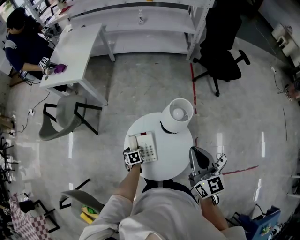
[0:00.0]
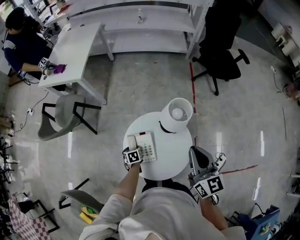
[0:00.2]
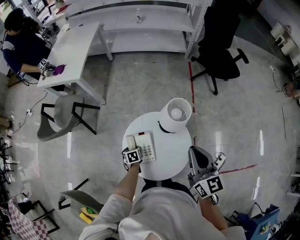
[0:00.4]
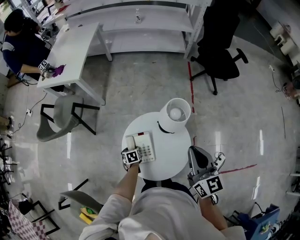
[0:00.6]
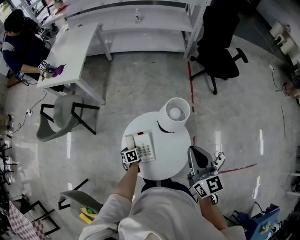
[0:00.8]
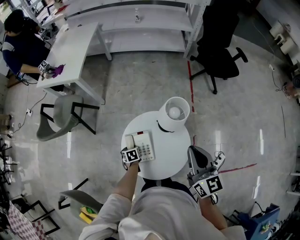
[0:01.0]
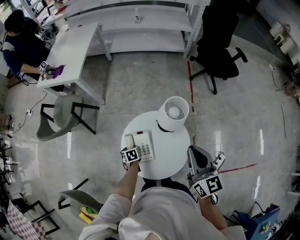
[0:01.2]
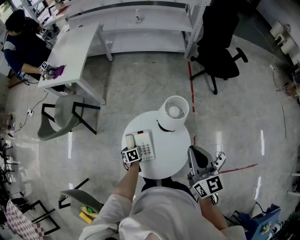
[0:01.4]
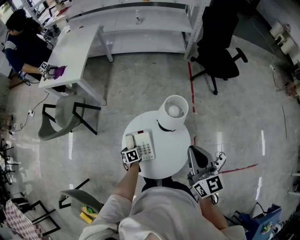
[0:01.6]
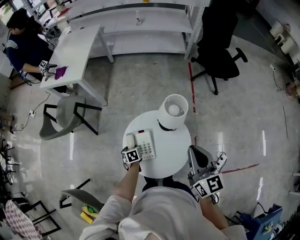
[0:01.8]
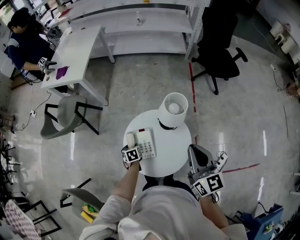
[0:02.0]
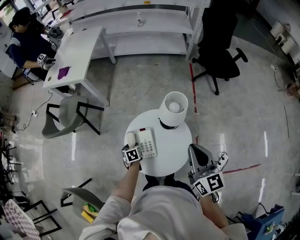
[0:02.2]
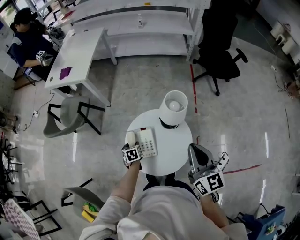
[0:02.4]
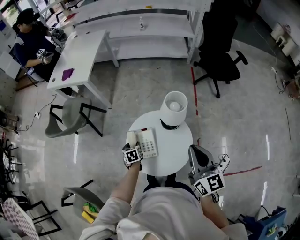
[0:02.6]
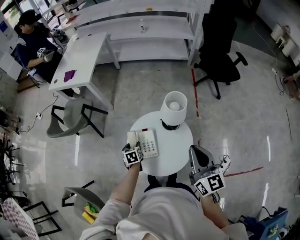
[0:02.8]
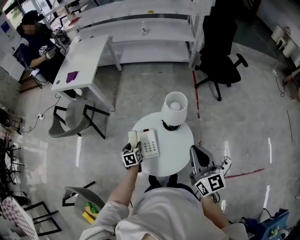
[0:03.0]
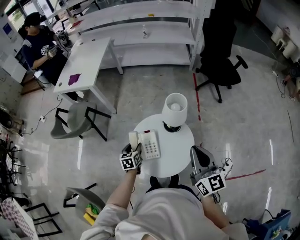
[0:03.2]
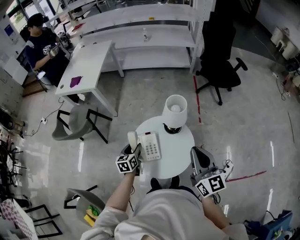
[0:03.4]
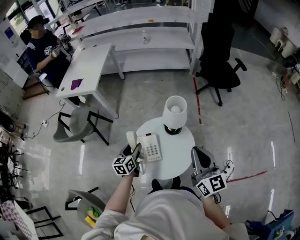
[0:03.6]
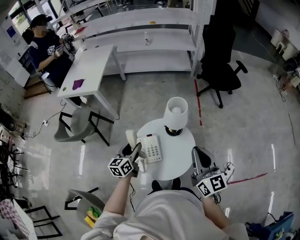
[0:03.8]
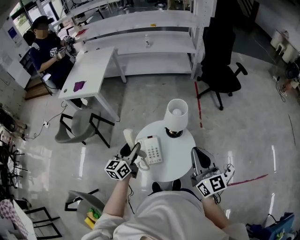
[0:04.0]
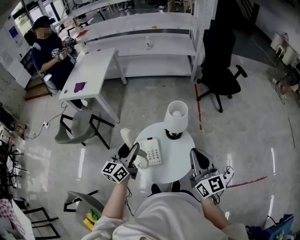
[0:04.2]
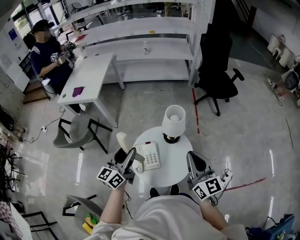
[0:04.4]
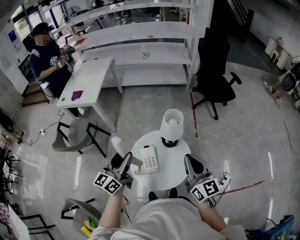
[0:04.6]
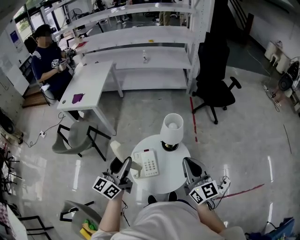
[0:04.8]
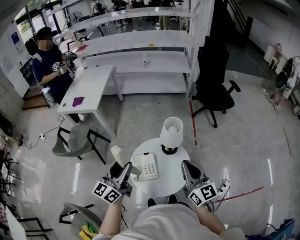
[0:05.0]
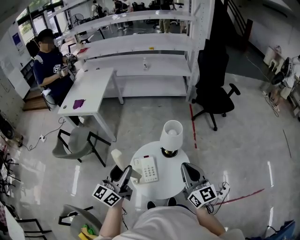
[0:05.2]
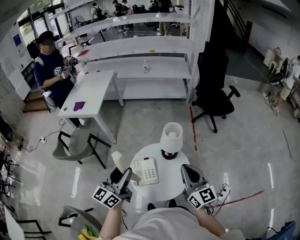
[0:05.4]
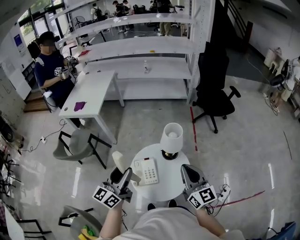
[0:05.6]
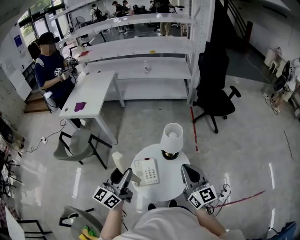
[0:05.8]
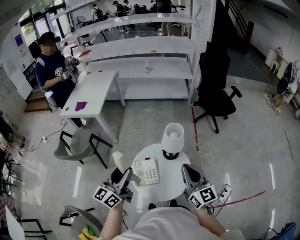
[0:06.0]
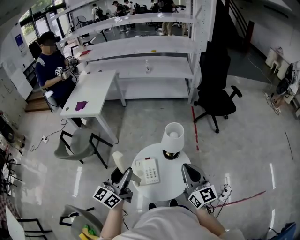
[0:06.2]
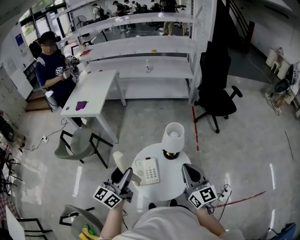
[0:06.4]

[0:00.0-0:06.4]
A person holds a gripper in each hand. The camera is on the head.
0:00.0 to 0:01.6: The grippers stay close to where they were, moving slightly.
0:01.6 to 0:03.2: The left gripper heads upward, covering some 15 cm, and changes its angle by approximately 30 degrees. Meanwhile the right gripper moves backward, roughly 5 cm.
0:03.2 to 0:04.8: The left gripper shifts approximately 30 cm upward, and angles its fingers upward, by some 50 degrees.
0:04.8 to 0:06.4: There are only small adjustments of the grippers.

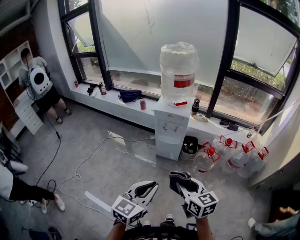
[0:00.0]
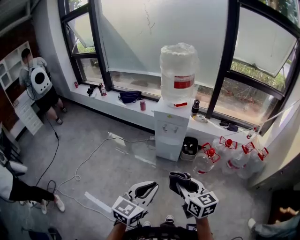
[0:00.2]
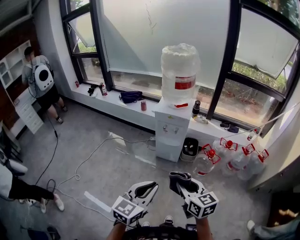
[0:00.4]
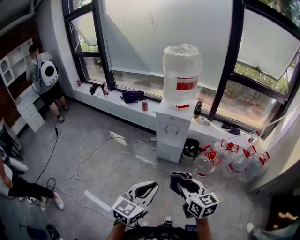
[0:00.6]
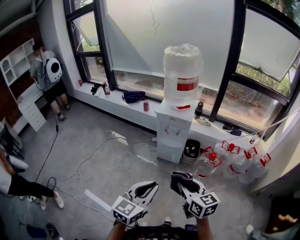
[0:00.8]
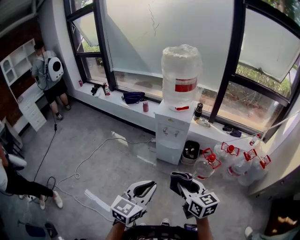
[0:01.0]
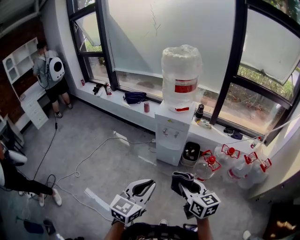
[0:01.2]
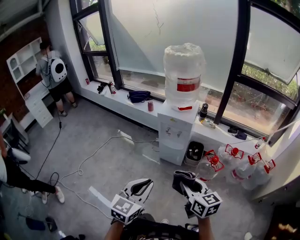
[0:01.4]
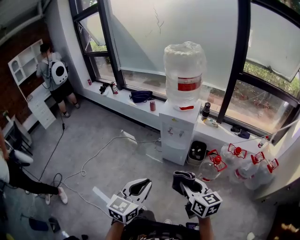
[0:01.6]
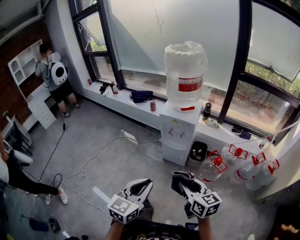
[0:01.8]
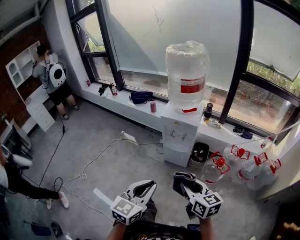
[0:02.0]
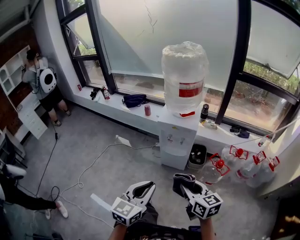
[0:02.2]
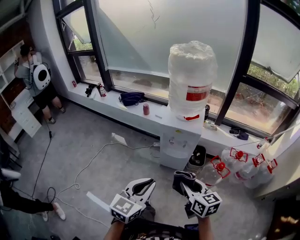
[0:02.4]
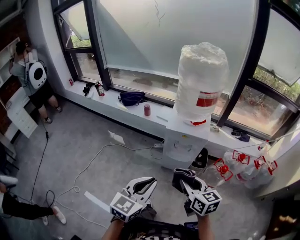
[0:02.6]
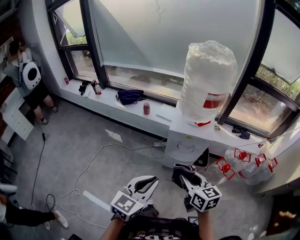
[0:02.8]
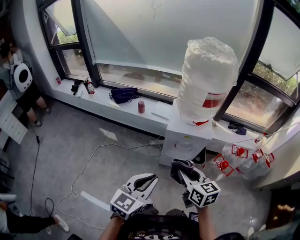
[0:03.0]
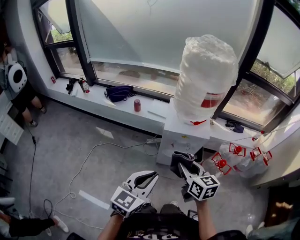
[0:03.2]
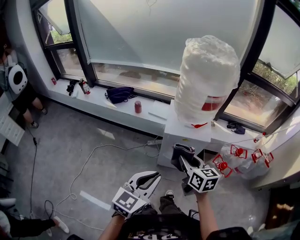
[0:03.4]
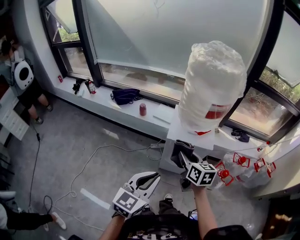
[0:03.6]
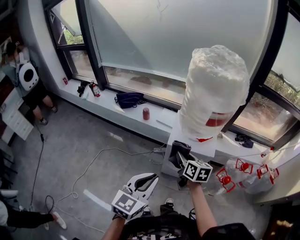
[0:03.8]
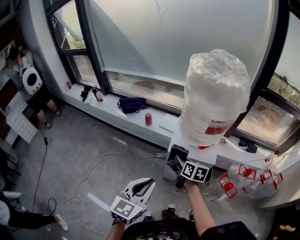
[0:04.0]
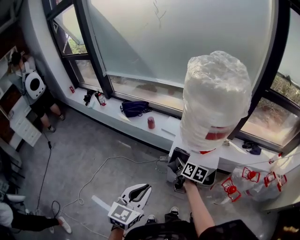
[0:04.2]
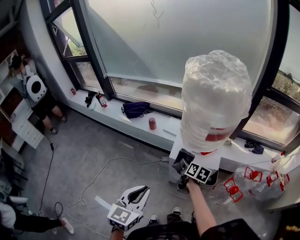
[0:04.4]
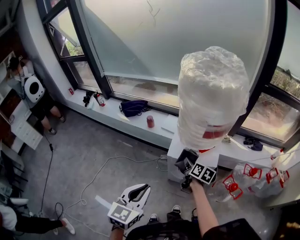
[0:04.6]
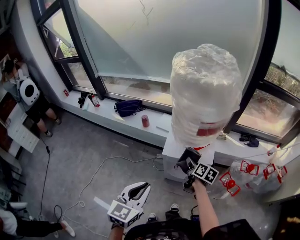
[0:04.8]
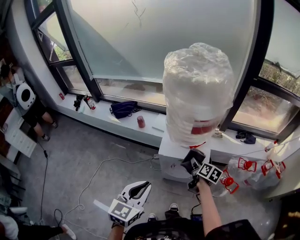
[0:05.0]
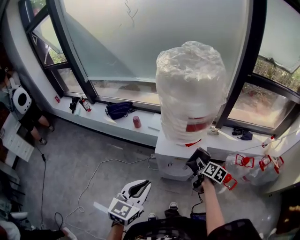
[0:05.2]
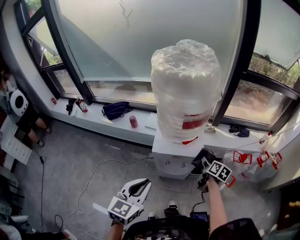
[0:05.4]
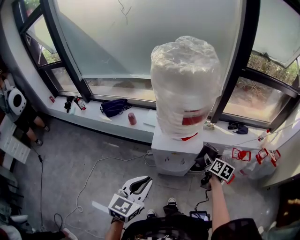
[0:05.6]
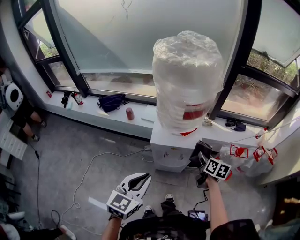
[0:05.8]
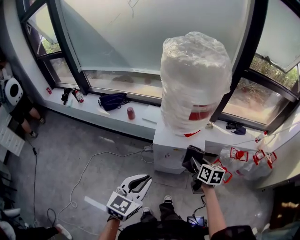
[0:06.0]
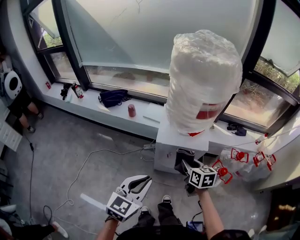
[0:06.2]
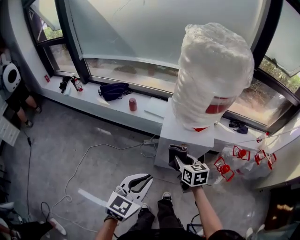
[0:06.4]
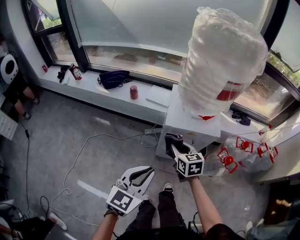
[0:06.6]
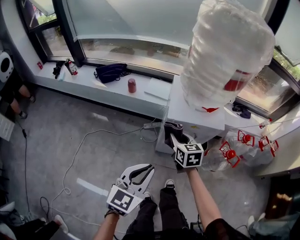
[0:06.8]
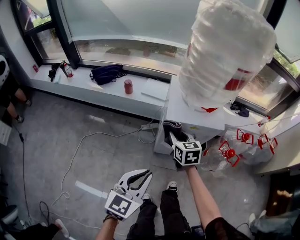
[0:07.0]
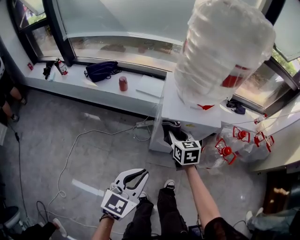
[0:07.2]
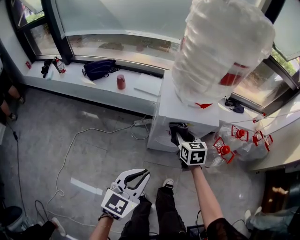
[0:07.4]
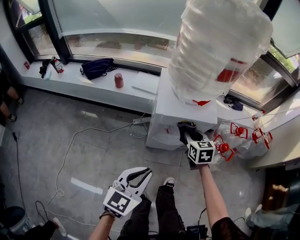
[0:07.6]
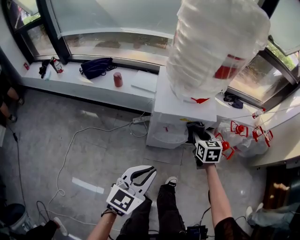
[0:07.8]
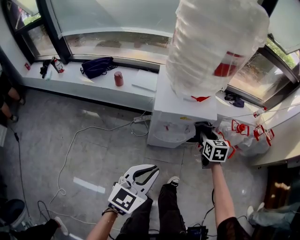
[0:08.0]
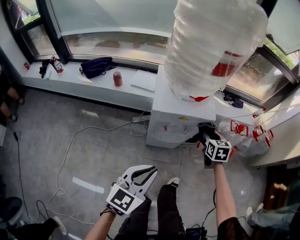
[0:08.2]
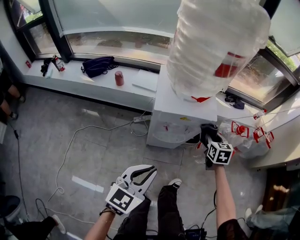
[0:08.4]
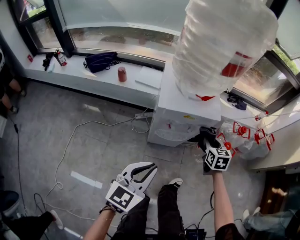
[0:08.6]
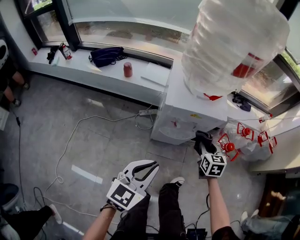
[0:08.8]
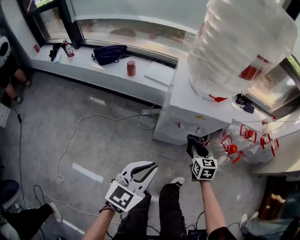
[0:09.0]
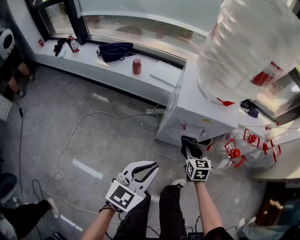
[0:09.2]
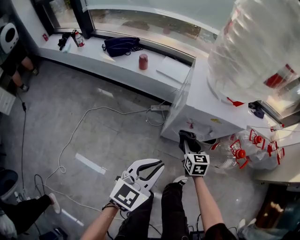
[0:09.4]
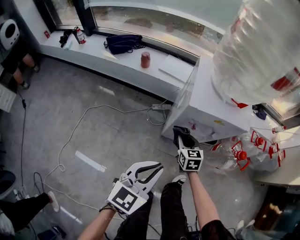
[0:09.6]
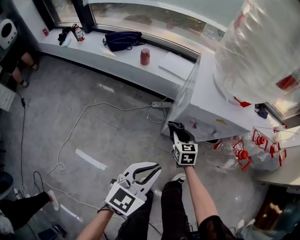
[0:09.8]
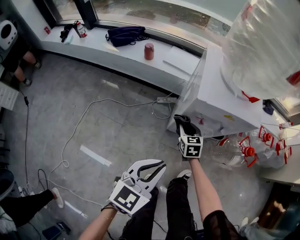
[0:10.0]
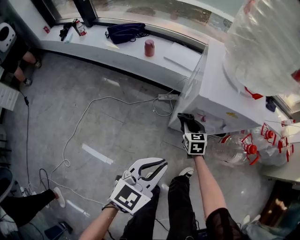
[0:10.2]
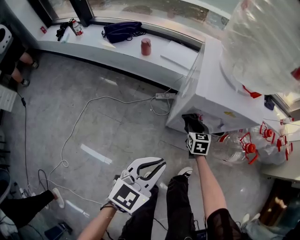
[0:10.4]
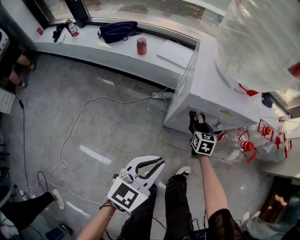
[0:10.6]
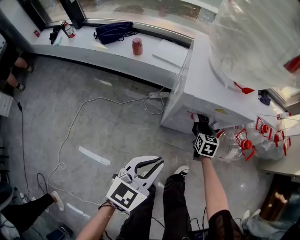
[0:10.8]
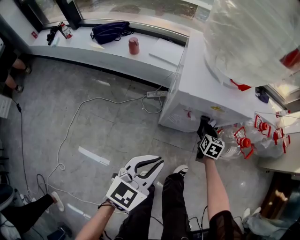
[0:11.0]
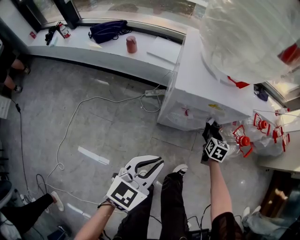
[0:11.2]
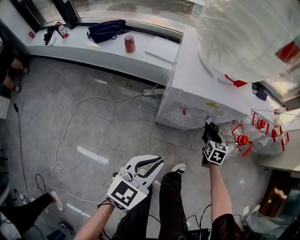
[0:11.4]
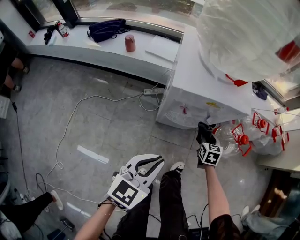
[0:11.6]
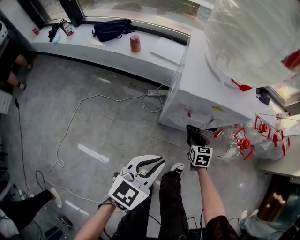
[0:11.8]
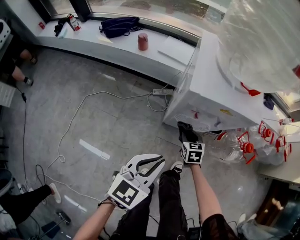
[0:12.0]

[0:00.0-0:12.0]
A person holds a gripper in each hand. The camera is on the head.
0:00.0 to 0:01.6: The left gripper goes approximately 5 cm forward. The right gripper shifts roughly 10 cm forward and to the right.
0:01.6 to 0:03.0: The two grippers go about 35 cm forward and to the left. The left gripper rotates about 20 degrees.
0:03.0 to 0:04.4: The right gripper moves forward and downward, roughly 30 cm, and changes its angle by some 30 degrees, while the left gripper goes about 10 cm forward.
0:04.4 to 0:06.0: The left gripper ends up roughly 5 cm from where it was, while the right gripper is displaced to the right and backward by about 15 cm.
0:06.0 to 0:07.6: Both grippers travel together downward, roughly 15 cm. The right gripper reaches some 20 cm to the left, then returns, and turns by some 30 degrees.
0:07.6 to 0:09.0: The right gripper shifts some 10 cm downward and backward, and moves about 15 cm to the right and comes back.
0:09.0 to 0:10.4: The right gripper heads downward, to the left and forward, covering roughly 20 cm, while the left gripper heads downward, covering approximately 5 cm.
0:10.4 to 0:12.0: The right gripper goes to the right and returns, roughly 20 cm each way.

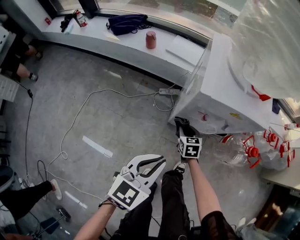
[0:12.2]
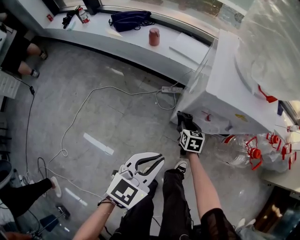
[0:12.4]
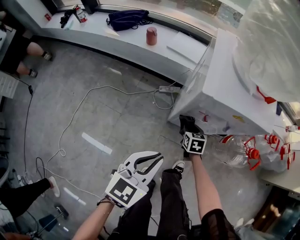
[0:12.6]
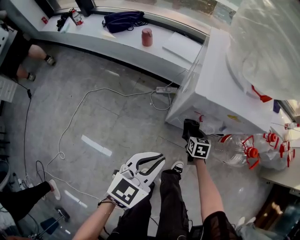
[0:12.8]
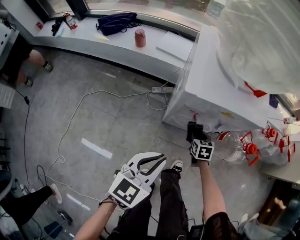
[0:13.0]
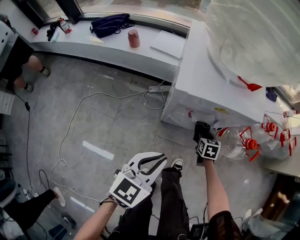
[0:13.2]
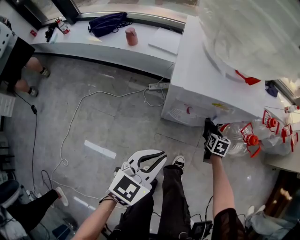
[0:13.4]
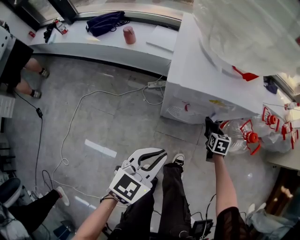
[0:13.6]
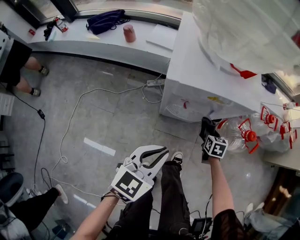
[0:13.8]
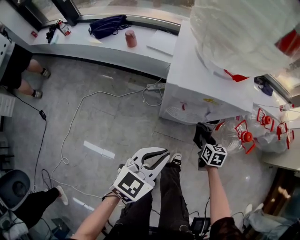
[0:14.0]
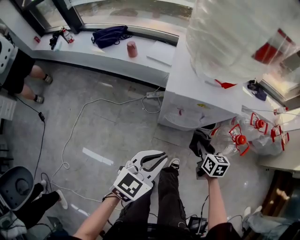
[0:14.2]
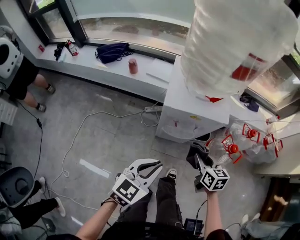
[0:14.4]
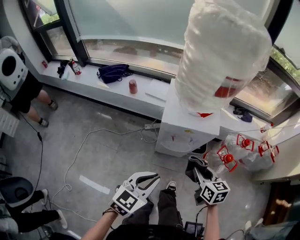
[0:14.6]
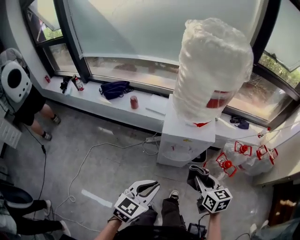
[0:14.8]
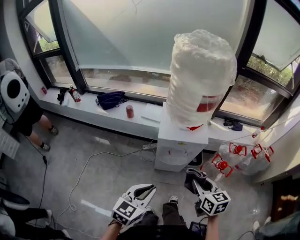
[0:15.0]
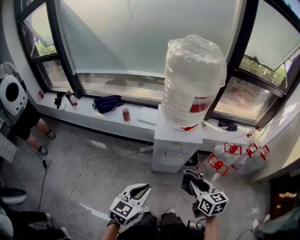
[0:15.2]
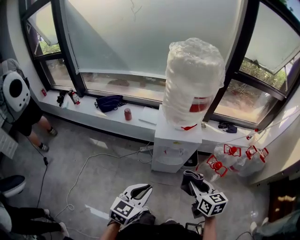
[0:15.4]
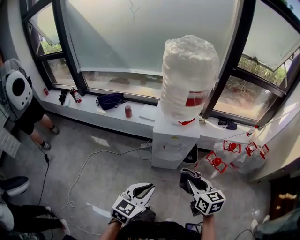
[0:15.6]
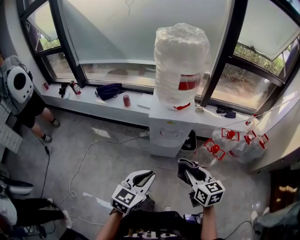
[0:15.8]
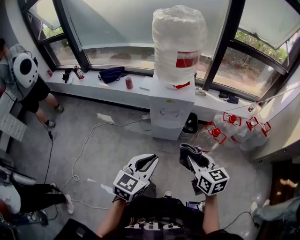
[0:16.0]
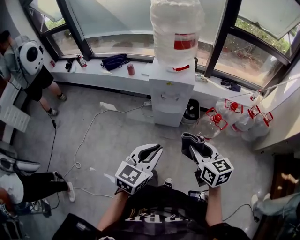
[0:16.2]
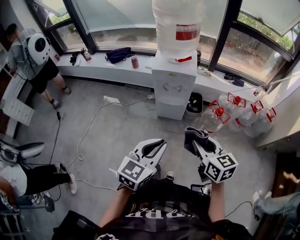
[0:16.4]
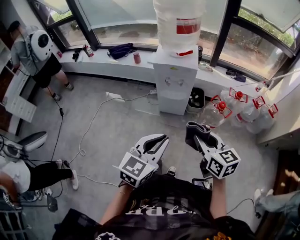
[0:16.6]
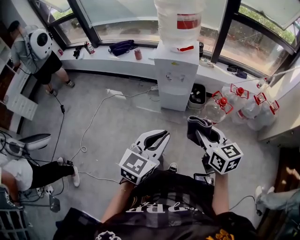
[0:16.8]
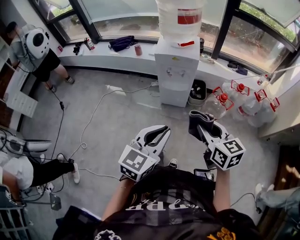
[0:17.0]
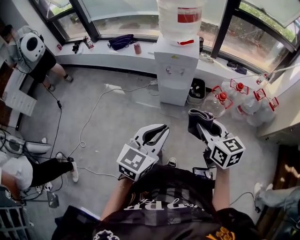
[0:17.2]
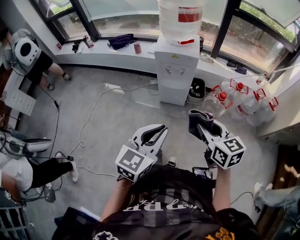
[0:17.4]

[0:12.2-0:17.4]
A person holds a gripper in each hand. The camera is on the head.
0:12.2 to 0:14.0: The right gripper goes roughly 20 cm to the right. The left gripper travels to the right by roughly 5 cm.
0:14.0 to 0:15.6: The right gripper heads upward and backward, covering approximately 50 cm, and swivels roughly 20 degrees. Meanwhile the left gripper shifts about 30 cm upward and backward.
0:15.6 to 0:17.4: Both grippers move backward and to the right, some 20 cm.
